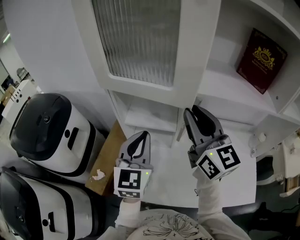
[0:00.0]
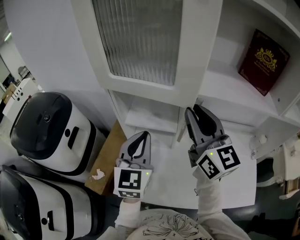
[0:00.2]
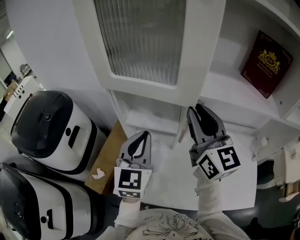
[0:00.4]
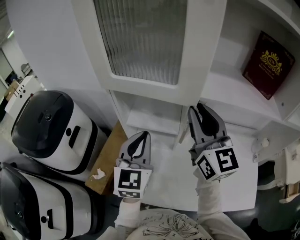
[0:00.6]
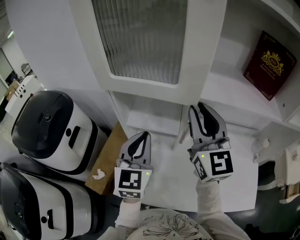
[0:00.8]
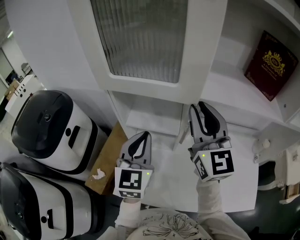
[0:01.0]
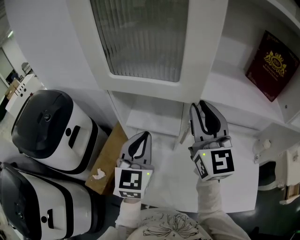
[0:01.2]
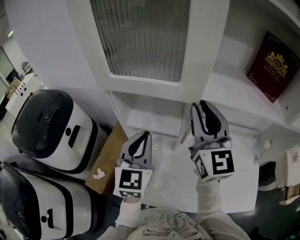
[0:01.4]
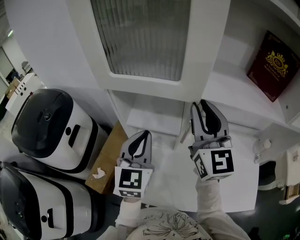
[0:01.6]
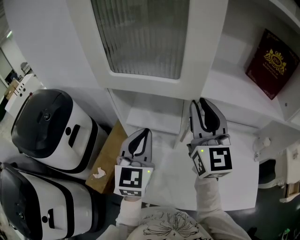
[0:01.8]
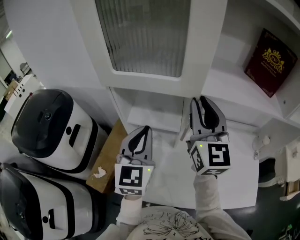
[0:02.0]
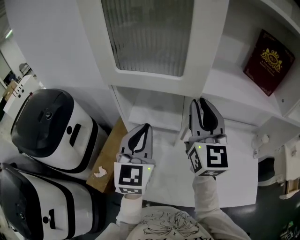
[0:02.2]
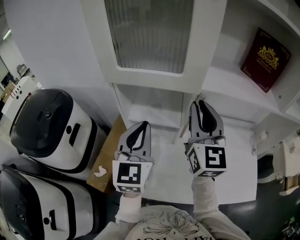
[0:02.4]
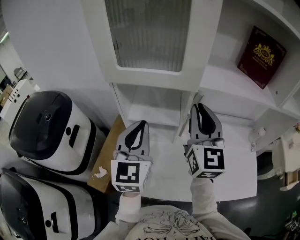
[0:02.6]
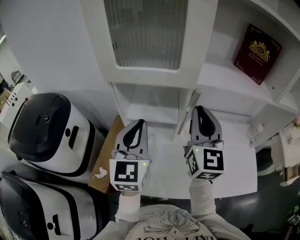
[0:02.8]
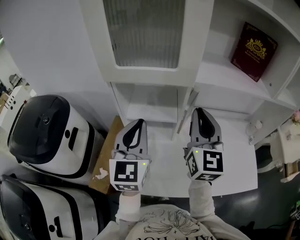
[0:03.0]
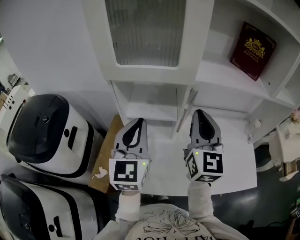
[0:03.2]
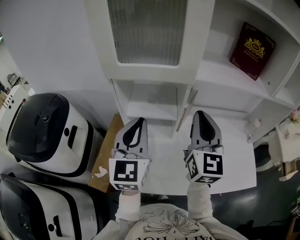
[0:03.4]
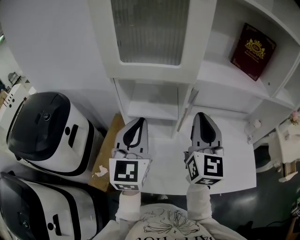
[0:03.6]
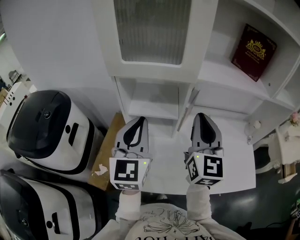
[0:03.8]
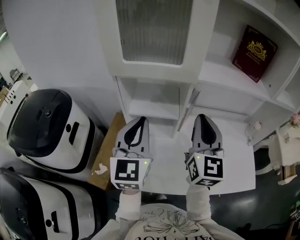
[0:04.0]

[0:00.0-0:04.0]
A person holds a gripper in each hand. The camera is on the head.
0:00.0 to 0:01.4: There are only small adjustments of the grippers.
0:01.4 to 0:02.6: The left gripper changes place by approximately 5 cm.
0:02.6 to 0:04.0: The right gripper is displaced backward by about 5 cm.

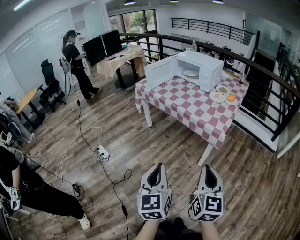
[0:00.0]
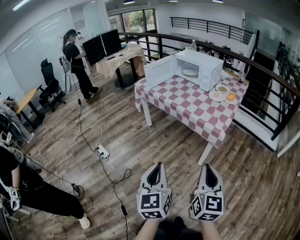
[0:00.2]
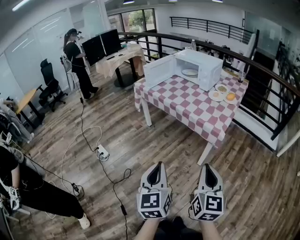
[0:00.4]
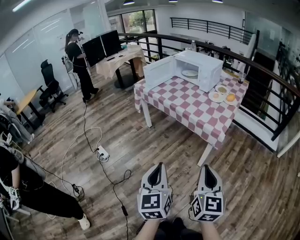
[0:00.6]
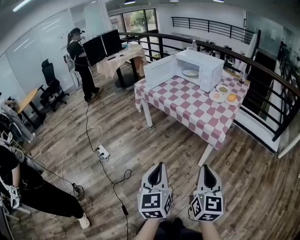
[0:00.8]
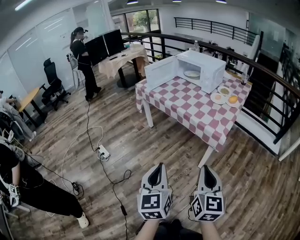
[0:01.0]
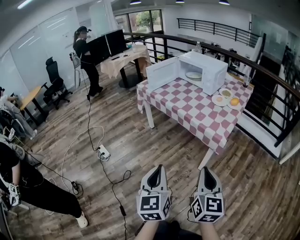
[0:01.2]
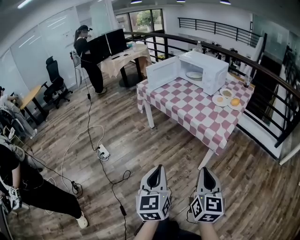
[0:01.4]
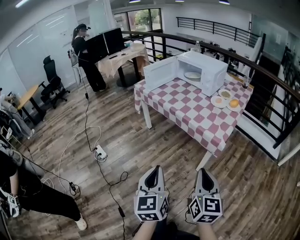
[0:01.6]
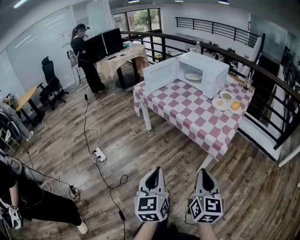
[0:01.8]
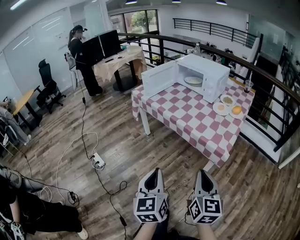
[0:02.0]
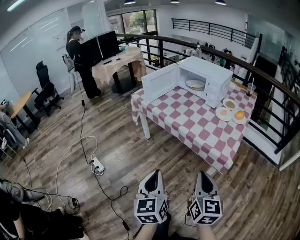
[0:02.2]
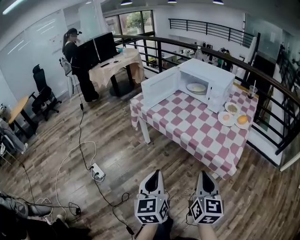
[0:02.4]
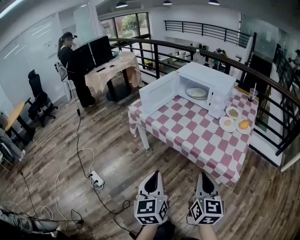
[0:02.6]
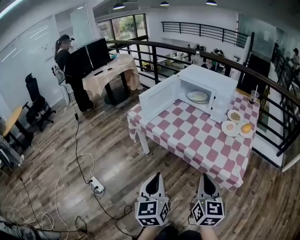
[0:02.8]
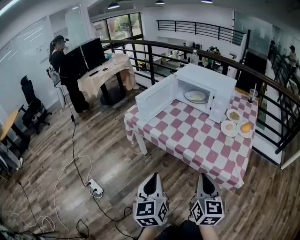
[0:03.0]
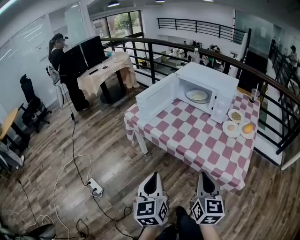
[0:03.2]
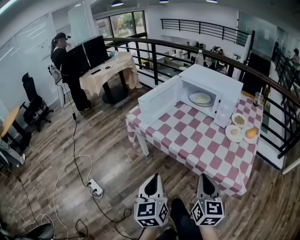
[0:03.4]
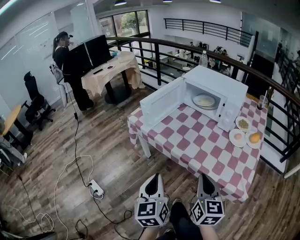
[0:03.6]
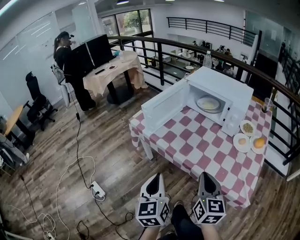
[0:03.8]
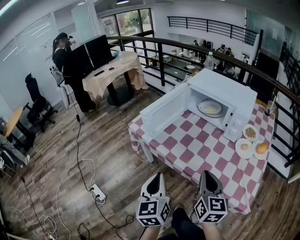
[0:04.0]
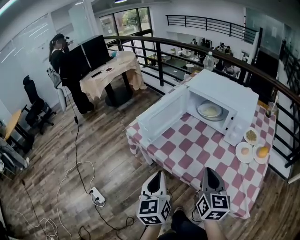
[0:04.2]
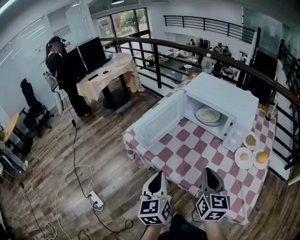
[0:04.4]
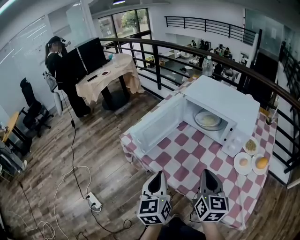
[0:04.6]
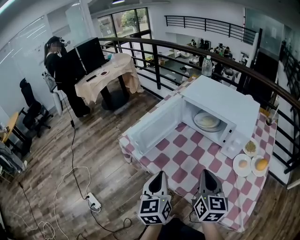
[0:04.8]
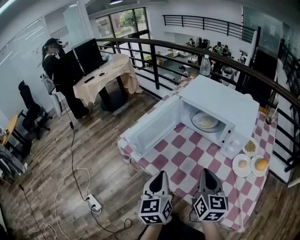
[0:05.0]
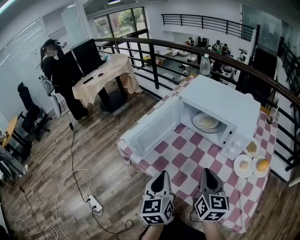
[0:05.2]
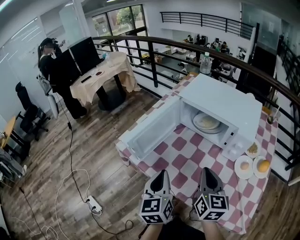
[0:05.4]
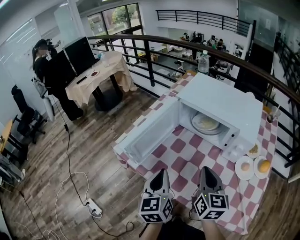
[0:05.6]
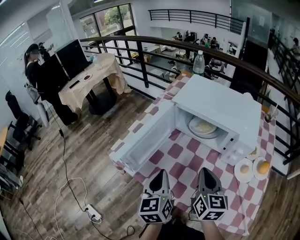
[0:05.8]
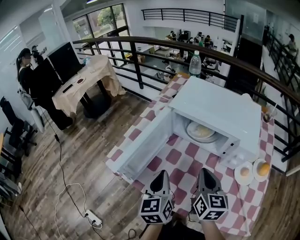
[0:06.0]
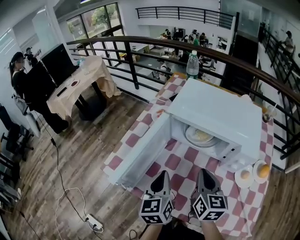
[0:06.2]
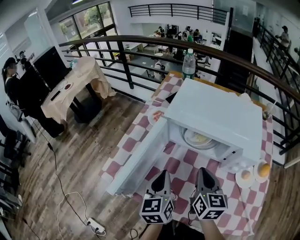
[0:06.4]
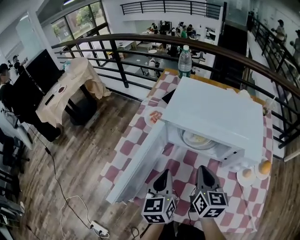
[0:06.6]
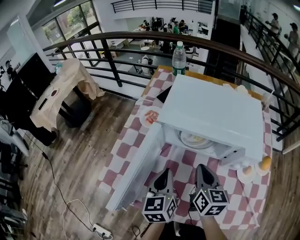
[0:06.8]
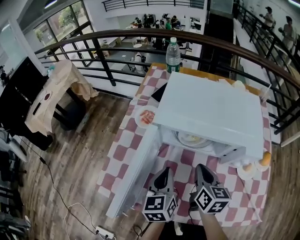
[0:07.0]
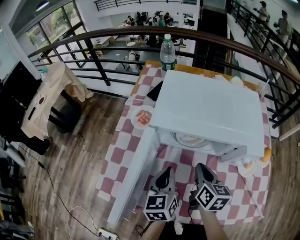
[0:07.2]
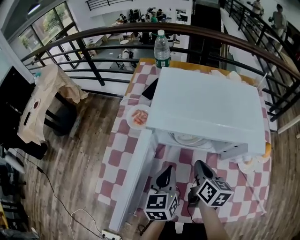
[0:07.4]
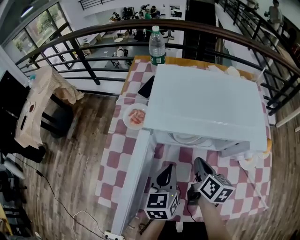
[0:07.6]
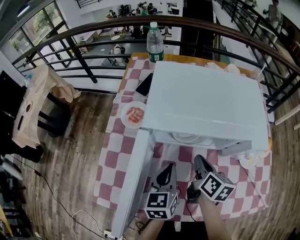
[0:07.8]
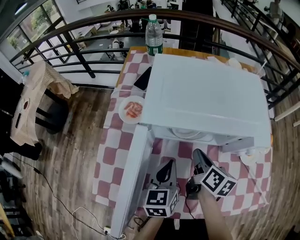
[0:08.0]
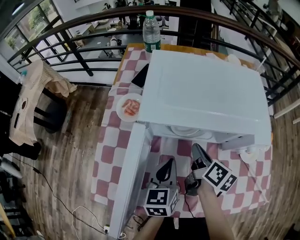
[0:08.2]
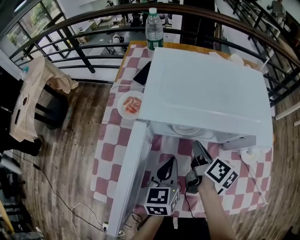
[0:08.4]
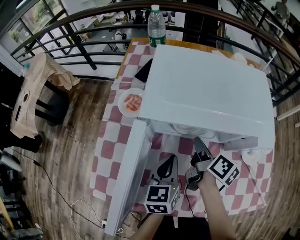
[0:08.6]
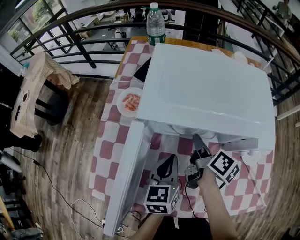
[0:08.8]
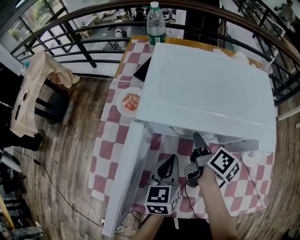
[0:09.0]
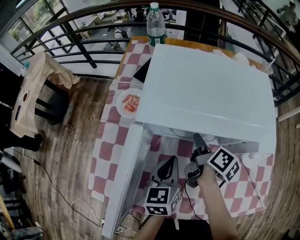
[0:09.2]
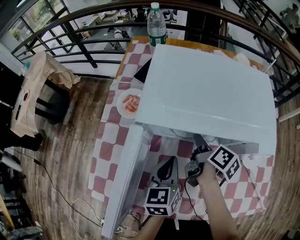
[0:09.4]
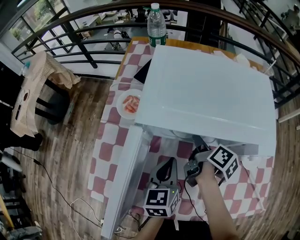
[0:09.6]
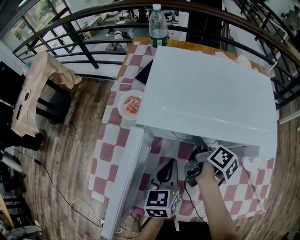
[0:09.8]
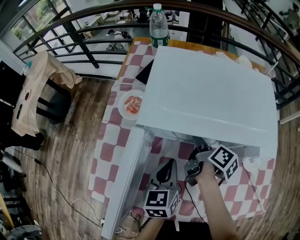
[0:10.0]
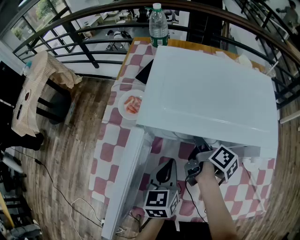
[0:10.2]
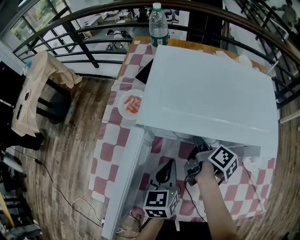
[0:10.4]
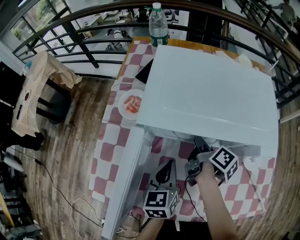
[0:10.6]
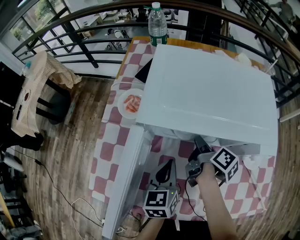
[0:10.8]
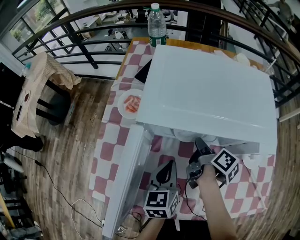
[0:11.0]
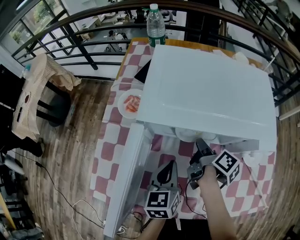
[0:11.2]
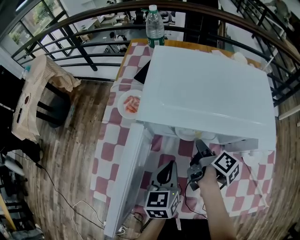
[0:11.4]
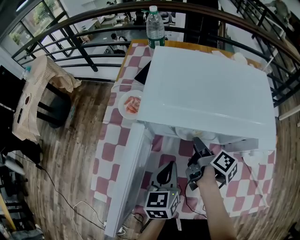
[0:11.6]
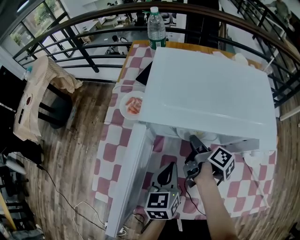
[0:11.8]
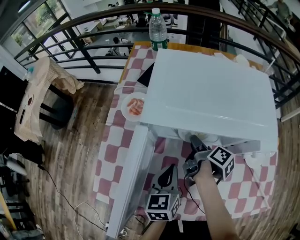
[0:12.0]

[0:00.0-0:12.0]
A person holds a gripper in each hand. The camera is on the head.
0:00.0 to 0:01.6: Both grippers travel together forward, approximately 5 cm.
0:01.6 to 0:03.0: Both grippers travel together forward, about 30 cm.
0:03.0 to 0:04.4: The two grippers go approximately 25 cm forward.
0:04.4 to 0:06.0: Both grippers move forward, approximately 20 cm.
0:06.0 to 0:07.6: Both grippers move forward and downward, roughly 15 cm. The left gripper changes its angle by approximately 30 degrees, while the right gripper swivels approximately 40 degrees.
0:07.6 to 0:09.0: The right gripper travels forward by approximately 5 cm, turns by roughly 30 degrees, and opens up.
0:09.0 to 0:10.4: The grippers move only a little.
0:10.4 to 0:12.0: The right gripper opens up.

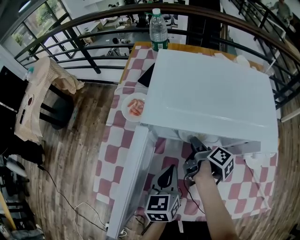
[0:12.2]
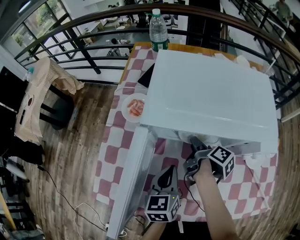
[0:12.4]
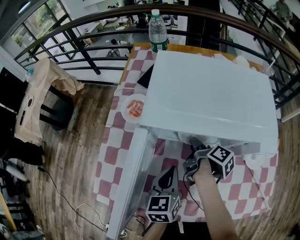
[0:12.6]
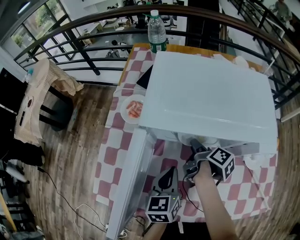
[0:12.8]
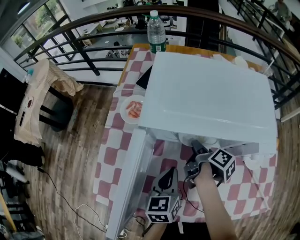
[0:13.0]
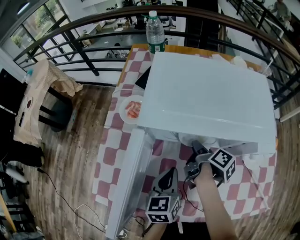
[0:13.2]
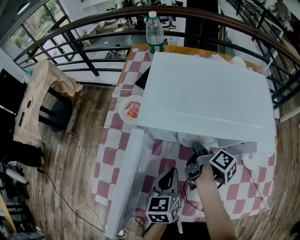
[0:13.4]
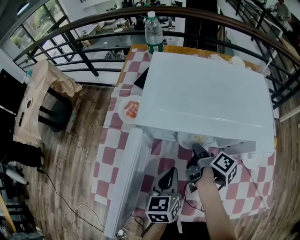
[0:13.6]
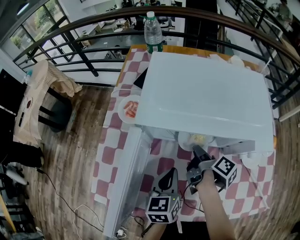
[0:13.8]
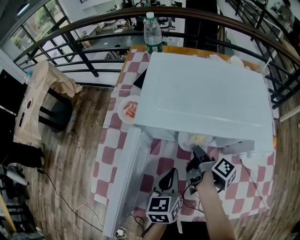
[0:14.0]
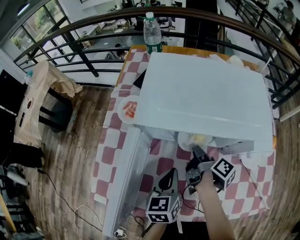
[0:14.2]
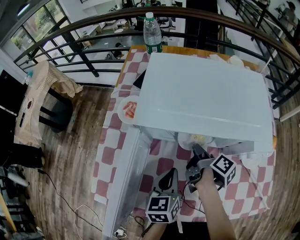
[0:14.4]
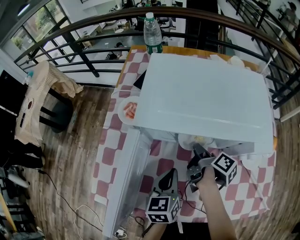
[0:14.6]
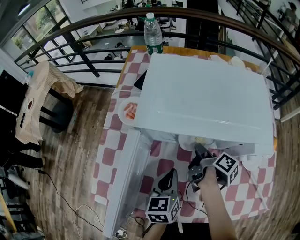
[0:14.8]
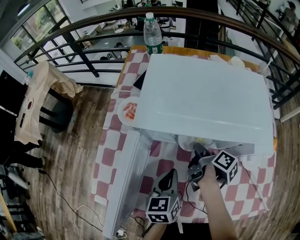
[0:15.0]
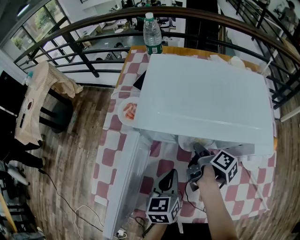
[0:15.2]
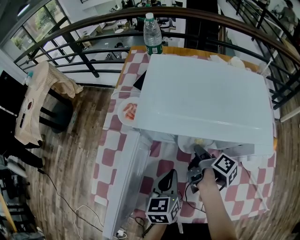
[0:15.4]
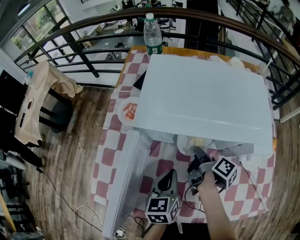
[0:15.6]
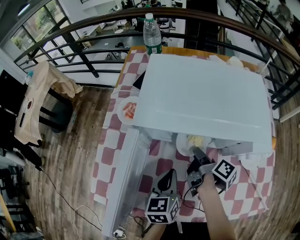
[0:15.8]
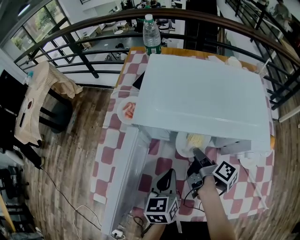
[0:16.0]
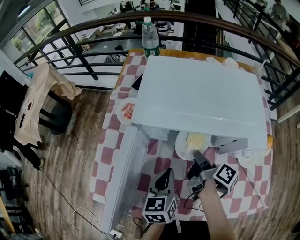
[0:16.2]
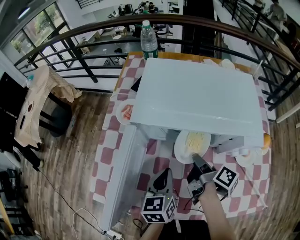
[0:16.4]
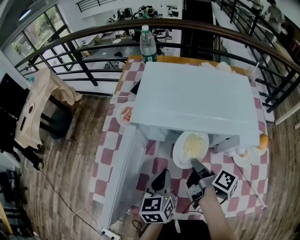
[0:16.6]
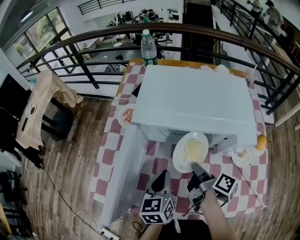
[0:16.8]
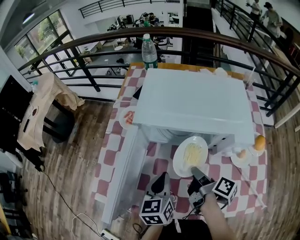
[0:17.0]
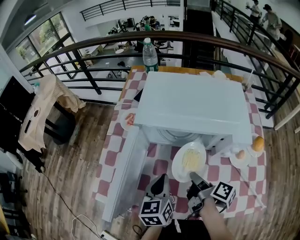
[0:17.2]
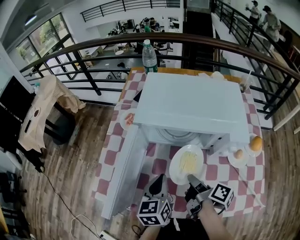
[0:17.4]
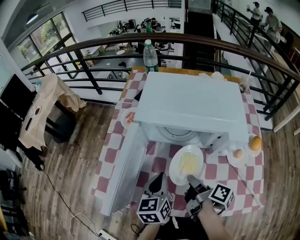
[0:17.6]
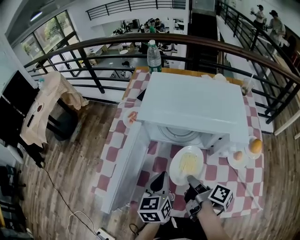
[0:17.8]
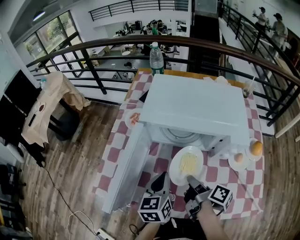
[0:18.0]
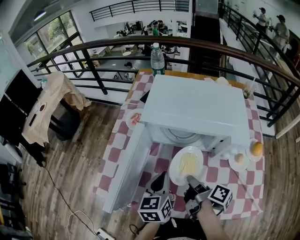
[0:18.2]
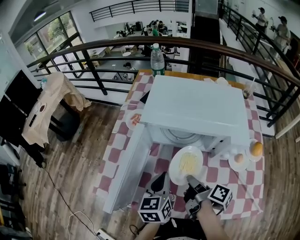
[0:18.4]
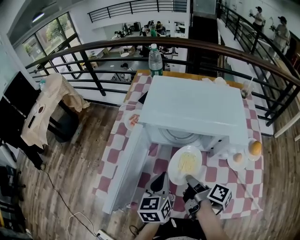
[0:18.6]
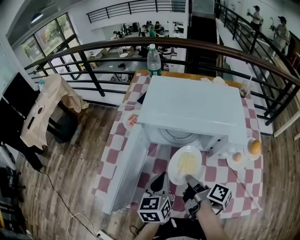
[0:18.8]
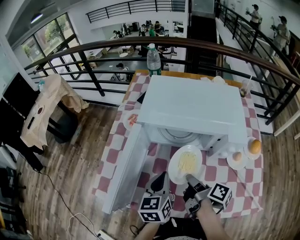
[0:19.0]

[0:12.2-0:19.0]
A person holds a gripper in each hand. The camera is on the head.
0:12.2 to 0:13.6: The right gripper closes up.
0:13.6 to 0:15.0: There are only small adjustments of the grippers.
0:15.0 to 0:16.2: The right gripper moves about 5 cm.
0:16.2 to 0:17.6: The right gripper moves backward, about 10 cm. The left gripper shifts by some 5 cm.
0:17.6 to 0:19.0: The grippers make only small movements.

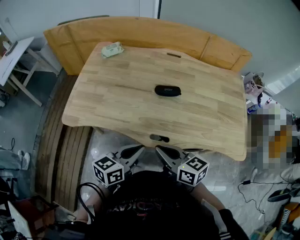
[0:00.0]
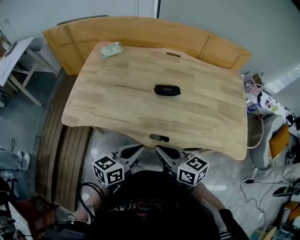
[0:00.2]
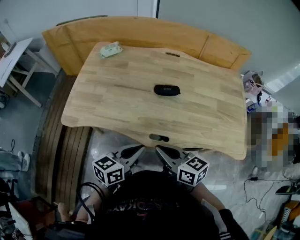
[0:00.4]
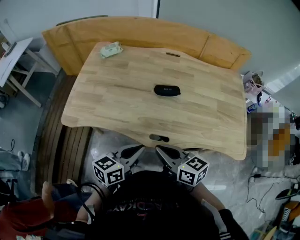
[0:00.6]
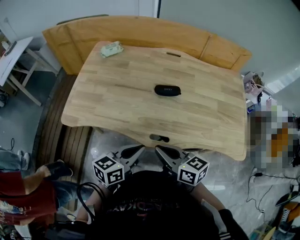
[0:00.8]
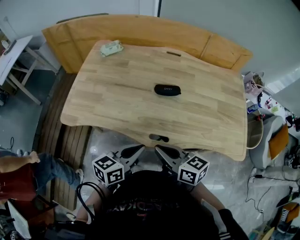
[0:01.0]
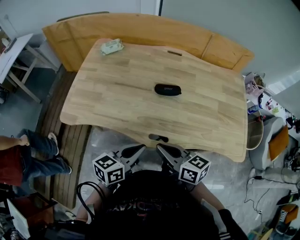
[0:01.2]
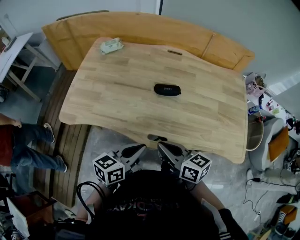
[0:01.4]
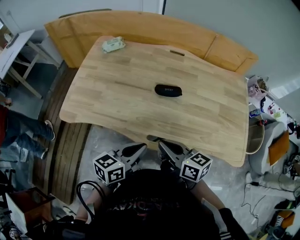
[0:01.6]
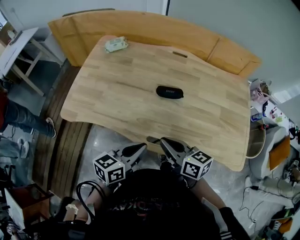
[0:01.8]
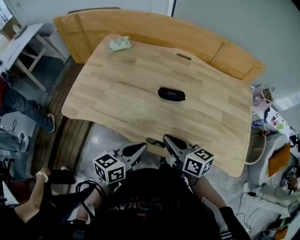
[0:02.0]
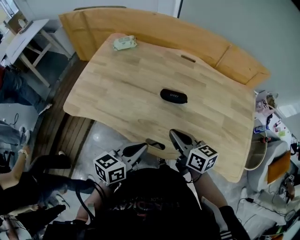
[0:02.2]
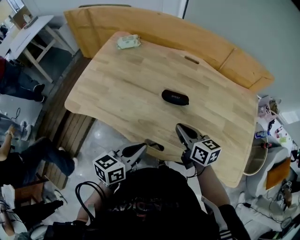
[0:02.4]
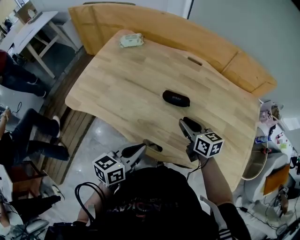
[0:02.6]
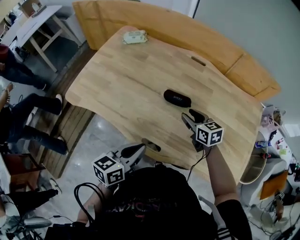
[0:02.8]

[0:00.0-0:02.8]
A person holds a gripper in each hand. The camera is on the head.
0:00.0 to 0:01.4: There are only small adjustments of the grippers.
0:01.4 to 0:02.8: The right gripper goes roughly 25 cm forward, to the right and downward, turns by approximately 30 degrees, and opens. The left gripper ends up roughly 5 cm from where it was.
